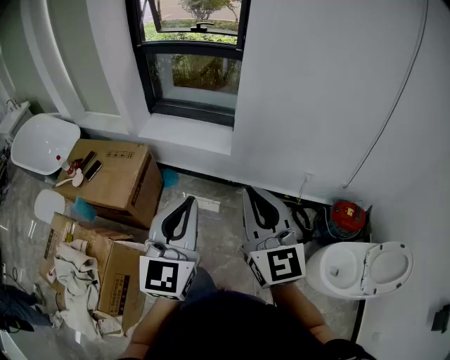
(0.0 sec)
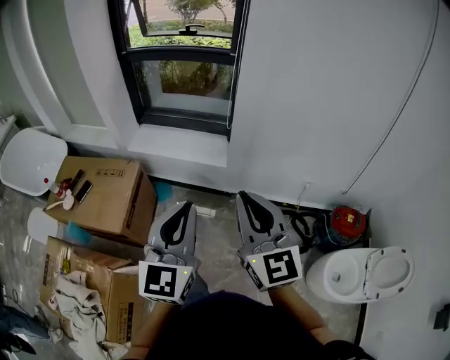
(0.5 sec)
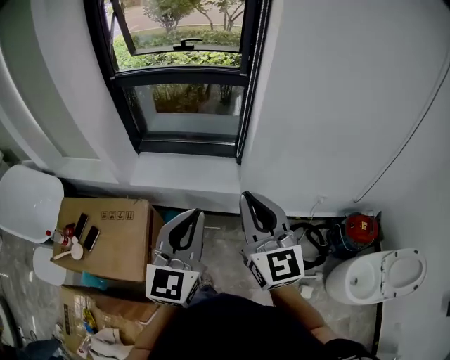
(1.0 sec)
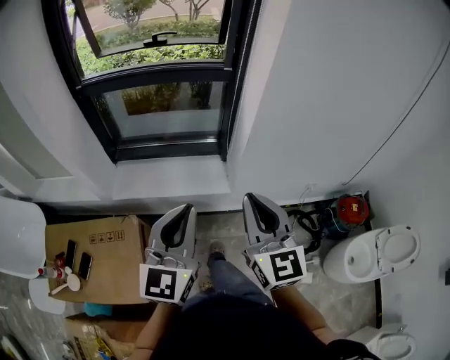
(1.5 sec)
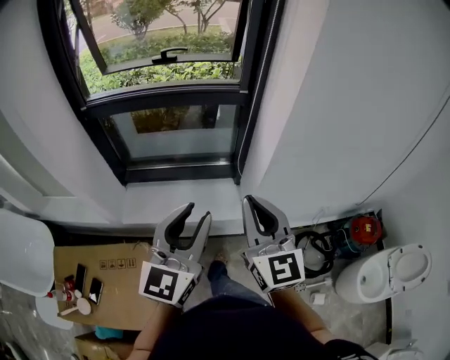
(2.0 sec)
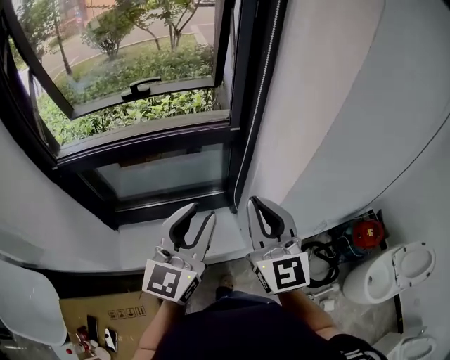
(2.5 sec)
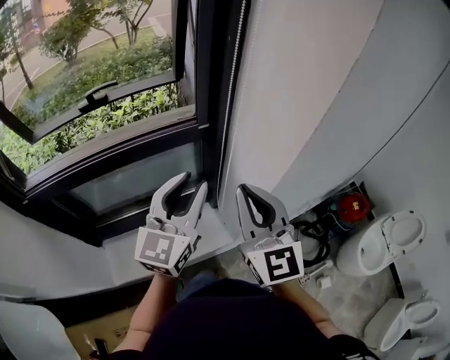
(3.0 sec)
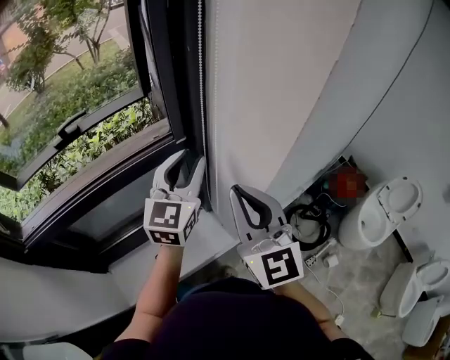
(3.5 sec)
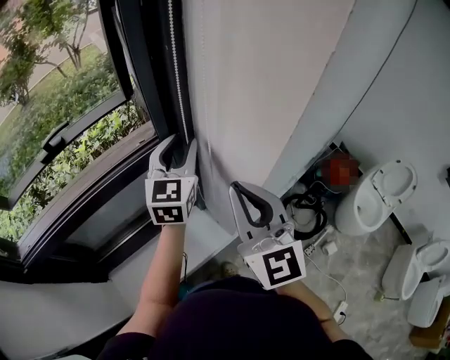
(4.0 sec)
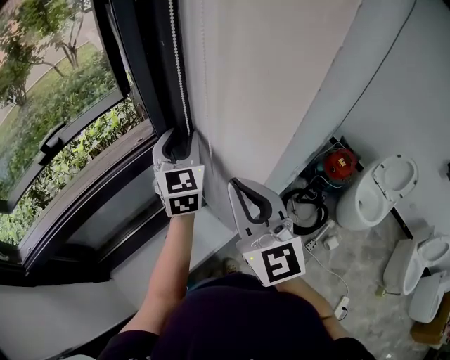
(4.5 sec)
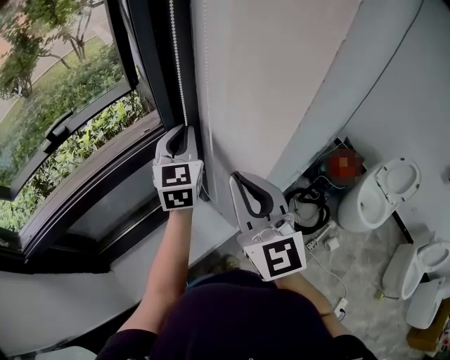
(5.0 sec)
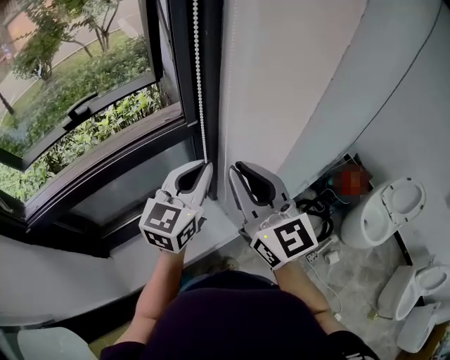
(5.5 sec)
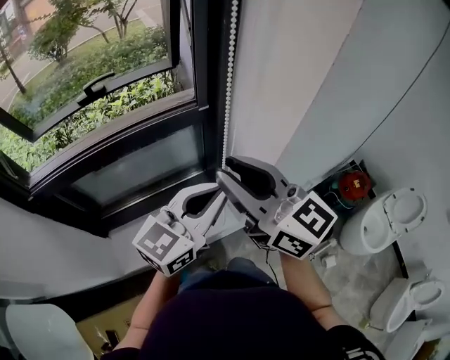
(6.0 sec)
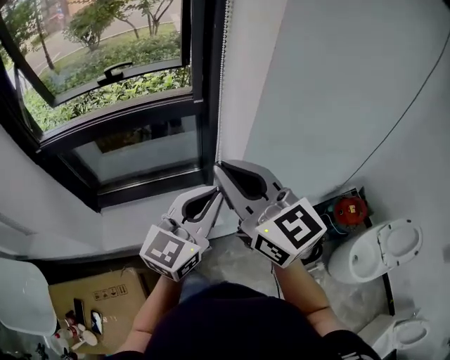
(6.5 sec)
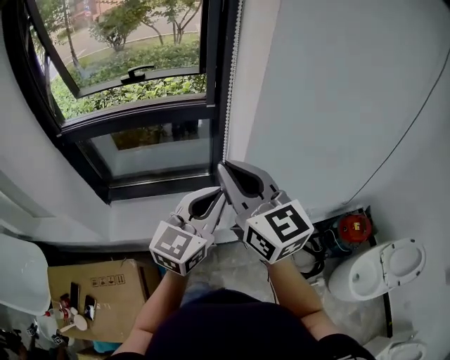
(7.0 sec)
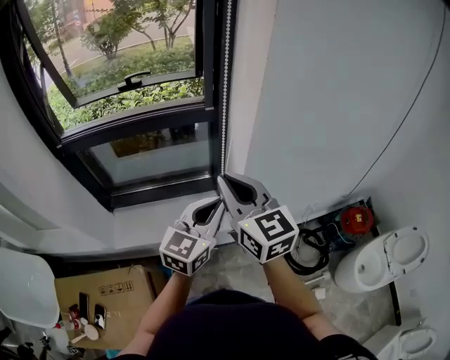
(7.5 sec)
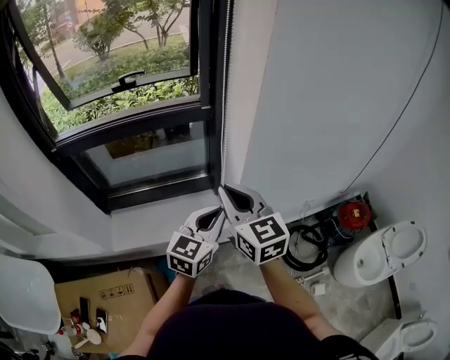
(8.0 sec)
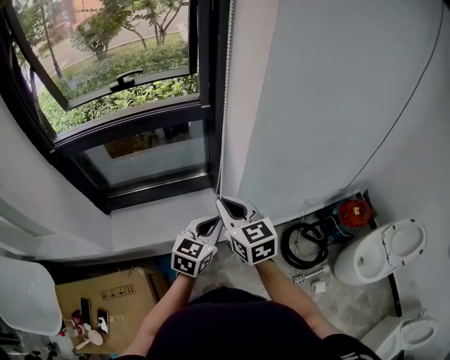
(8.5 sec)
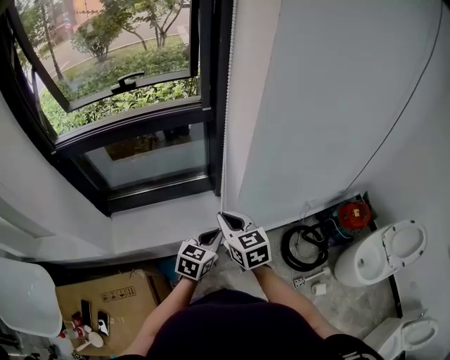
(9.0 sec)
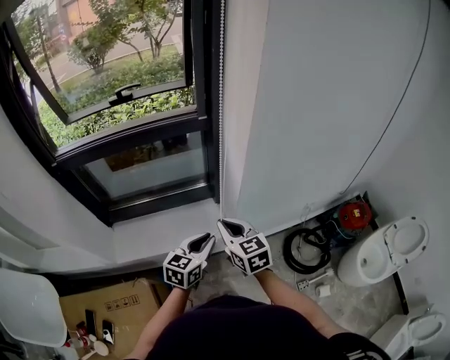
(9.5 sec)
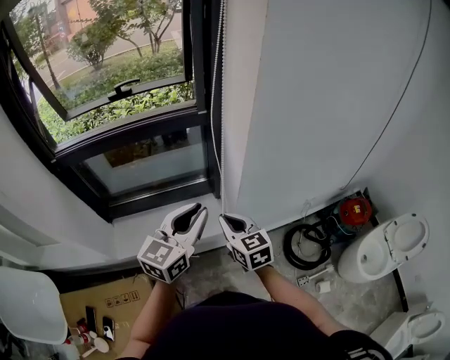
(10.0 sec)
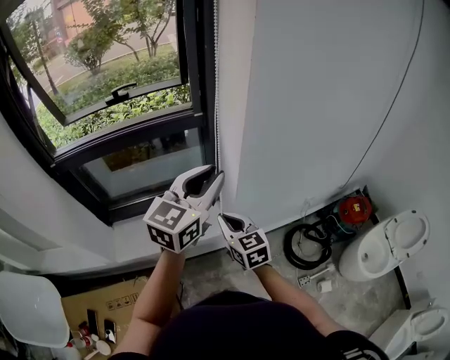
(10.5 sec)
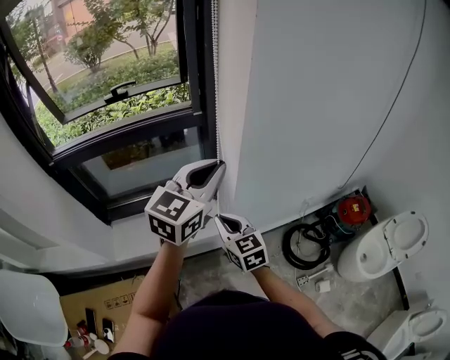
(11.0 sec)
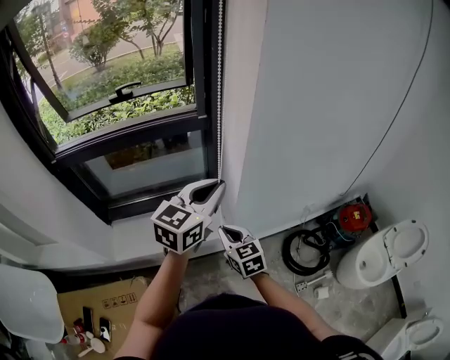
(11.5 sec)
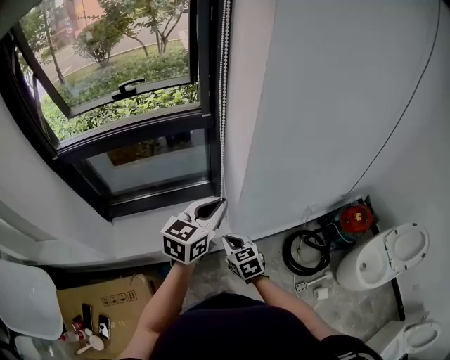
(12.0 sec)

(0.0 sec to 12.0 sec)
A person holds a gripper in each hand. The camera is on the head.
0.0 sec - 2.0 sec: Both grippers are carried forward and to the left, approximately 50 cm. The left gripper swivels approximately 30 degrees, and opens.
2.0 sec - 4.0 sec: The right gripper heads forward, covering about 25 cm, and swivels some 30 degrees; the left gripper travels forward by about 50 cm, and turns by approximately 20 degrees.
4.0 sec - 6.0 sec: The left gripper is displaced backward by some 25 cm, changes its angle by roughly 20 degrees, and closes, while the right gripper moves backward and to the left, some 10 cm, and rotates some 40 degrees.
6.0 sec - 8.0 sec: The right gripper is displaced downward, backward and to the right by about 15 cm. The left gripper goes approximately 15 cm backward, downward and to the right, and changes its angle by about 20 degrees.
8.0 sec - 10.0 sec: The right gripper shifts roughly 15 cm downward; the left gripper travels to the left by roughly 5 cm, and travels downward and back again, roughly 15 cm each way.
10.0 sec - 12.0 sec: The left gripper goes roughly 5 cm to the right, and moves some 10 cm upward and comes back. The right gripper travels downward by roughly 10 cm.

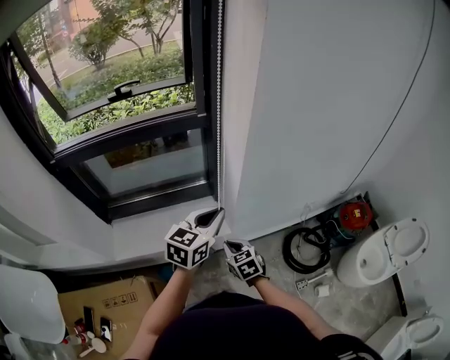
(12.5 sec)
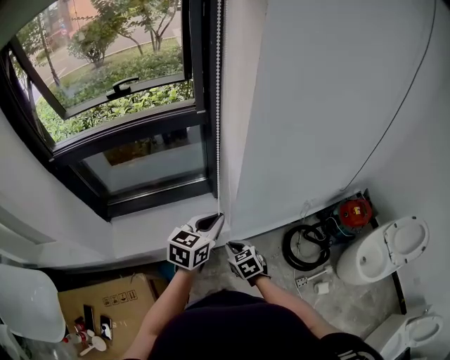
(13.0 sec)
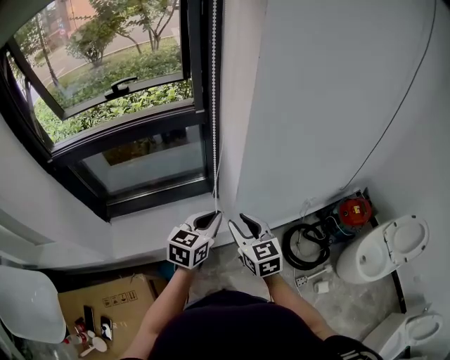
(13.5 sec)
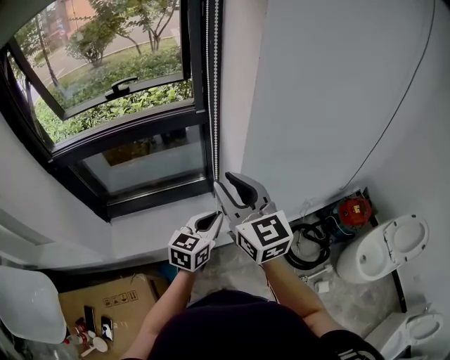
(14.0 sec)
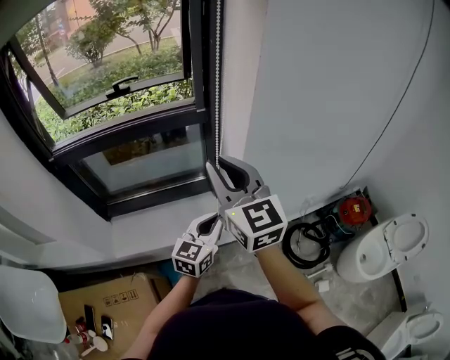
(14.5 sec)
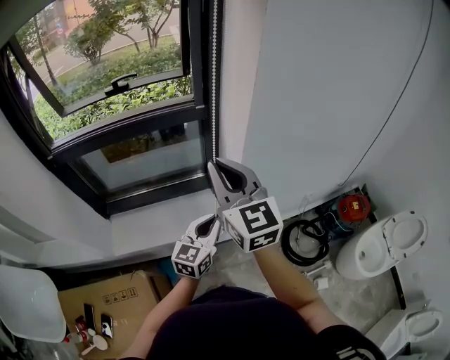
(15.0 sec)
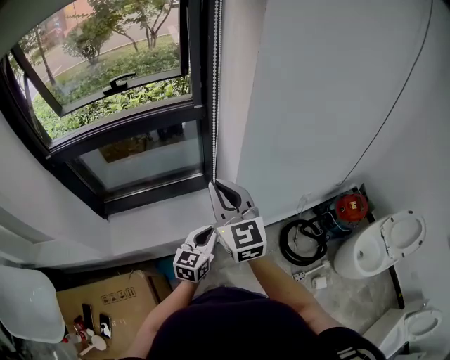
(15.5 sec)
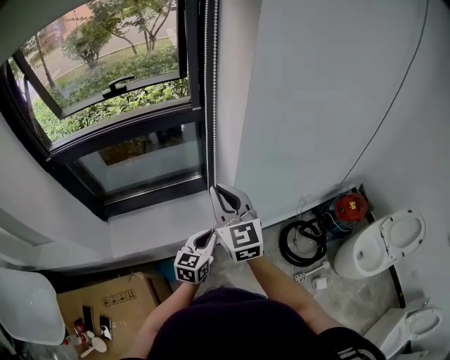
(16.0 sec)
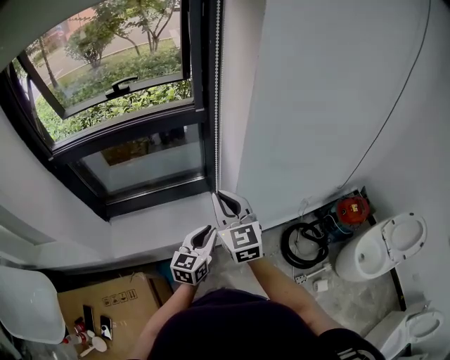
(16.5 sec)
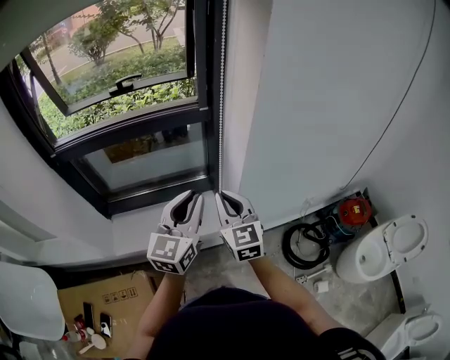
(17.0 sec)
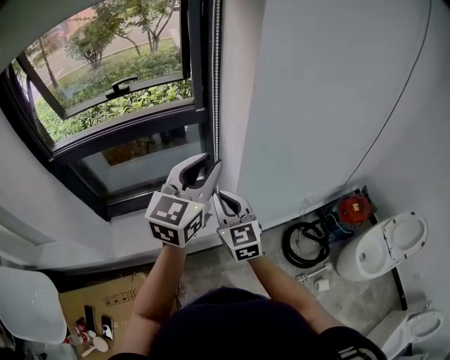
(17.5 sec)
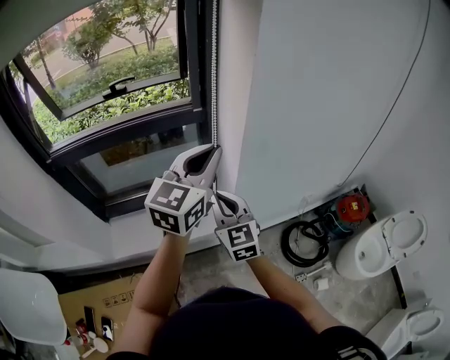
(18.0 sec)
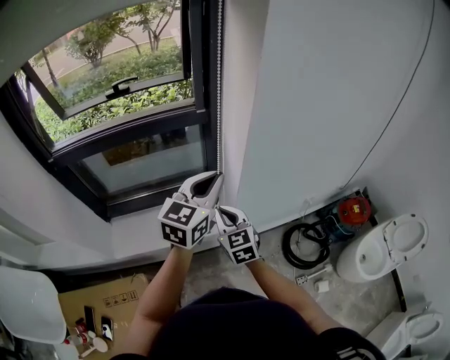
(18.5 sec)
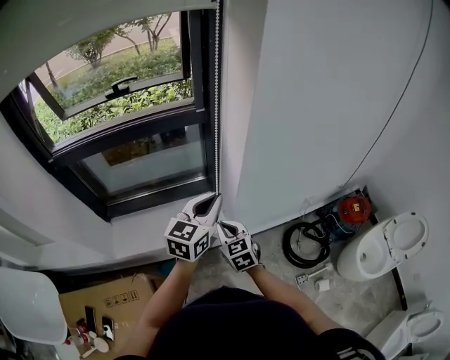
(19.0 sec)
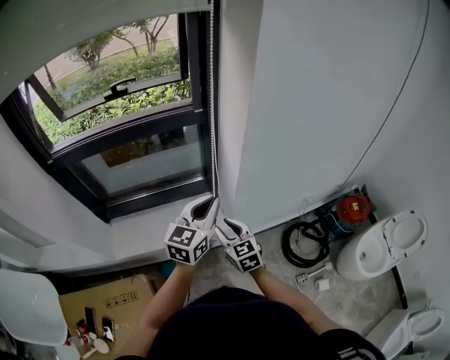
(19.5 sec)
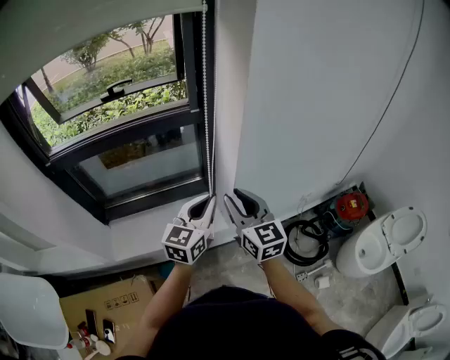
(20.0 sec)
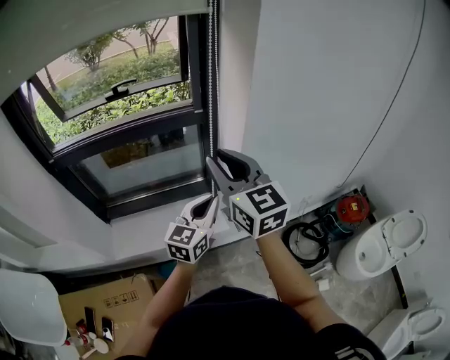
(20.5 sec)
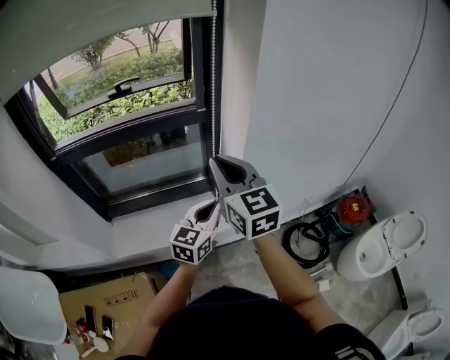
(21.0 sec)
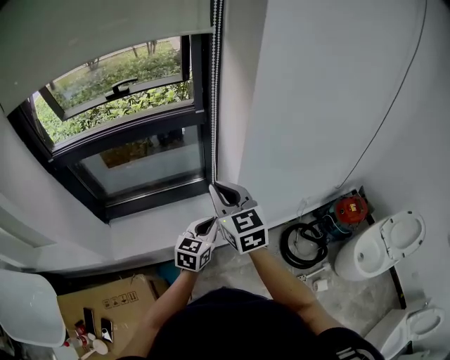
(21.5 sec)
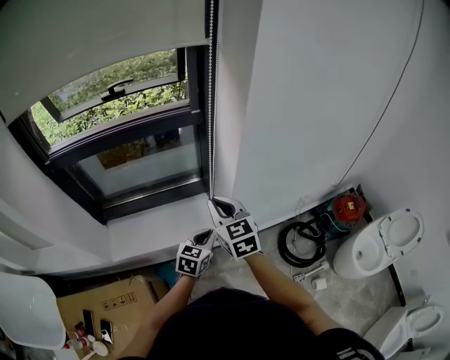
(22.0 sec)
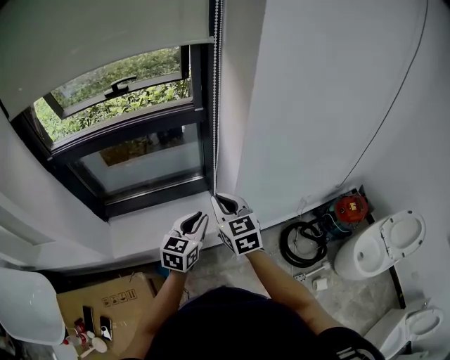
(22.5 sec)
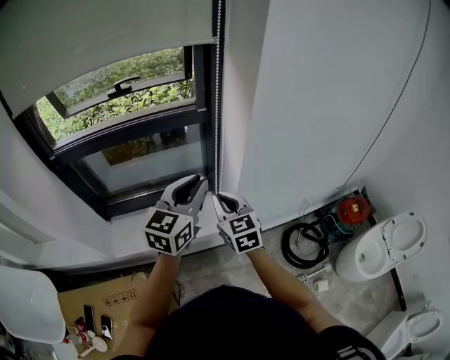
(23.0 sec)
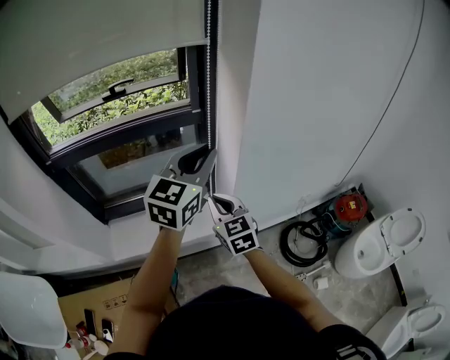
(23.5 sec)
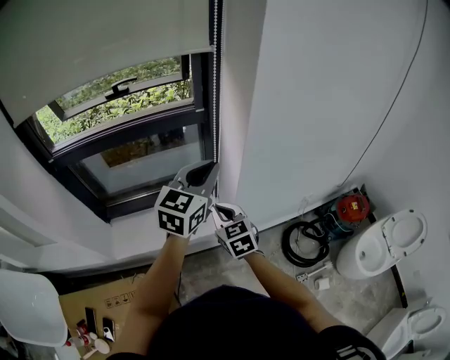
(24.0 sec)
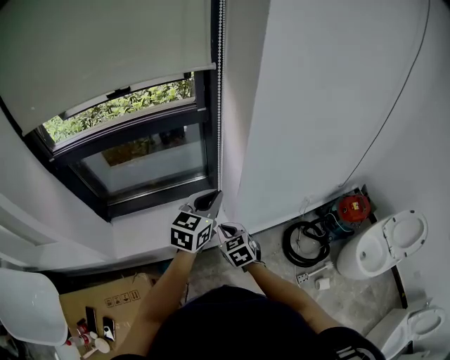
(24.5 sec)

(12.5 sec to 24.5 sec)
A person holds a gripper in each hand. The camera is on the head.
12.5 sec - 14.5 sec: The right gripper moves upward, about 35 cm, and tilts its fingers some 40 degrees upward.
14.5 sec - 16.5 sec: The right gripper moves downward, roughly 15 cm; the left gripper travels downward by some 5 cm.
16.5 sec - 18.5 sec: The left gripper shifts some 20 cm upward and forward. Meanwhile the right gripper moves downward, some 10 cm.
18.5 sec - 20.5 sec: The left gripper travels downward by about 10 cm. Meanwhile the right gripper is displaced upward by about 25 cm, and rotates roughly 20 degrees.
20.5 sec - 22.5 sec: The left gripper travels downward by roughly 10 cm, while the right gripper travels downward by roughly 20 cm.
22.5 sec - 24.5 sec: The right gripper shifts roughly 15 cm downward, and turns by roughly 20 degrees. The left gripper moves roughly 25 cm upward and comes back.

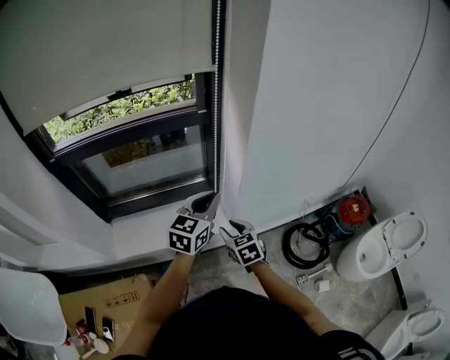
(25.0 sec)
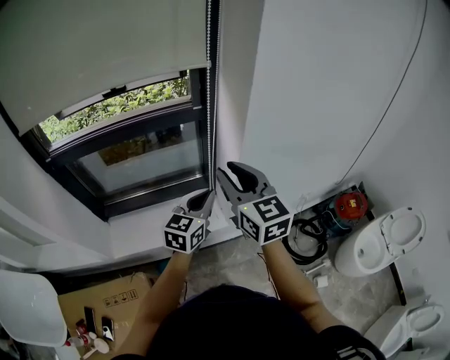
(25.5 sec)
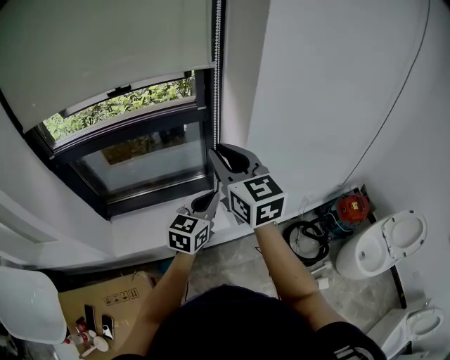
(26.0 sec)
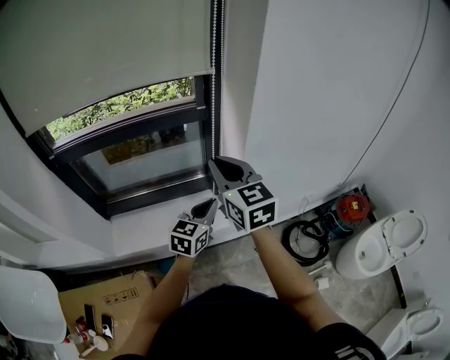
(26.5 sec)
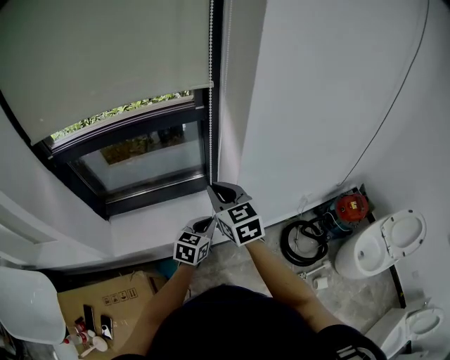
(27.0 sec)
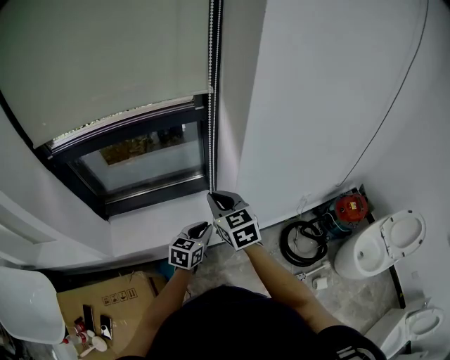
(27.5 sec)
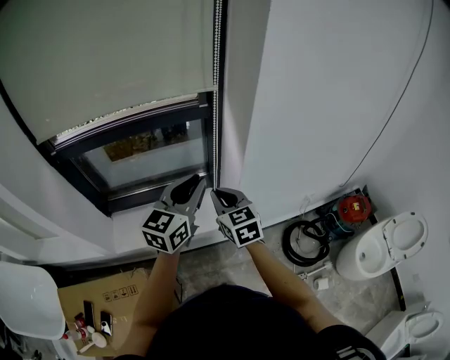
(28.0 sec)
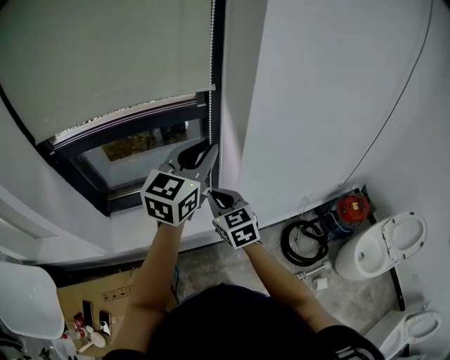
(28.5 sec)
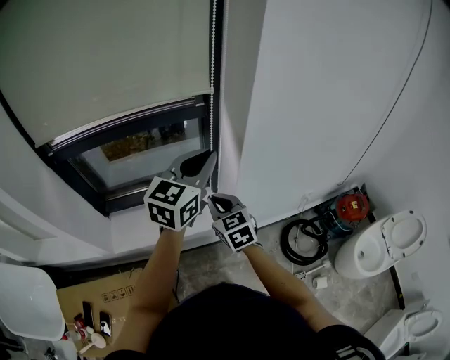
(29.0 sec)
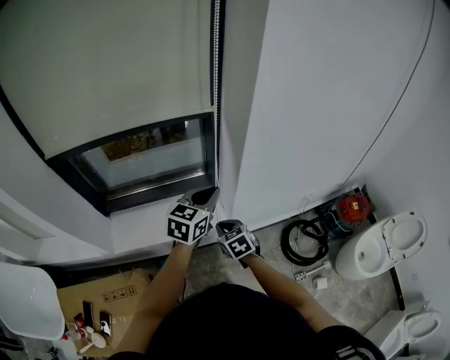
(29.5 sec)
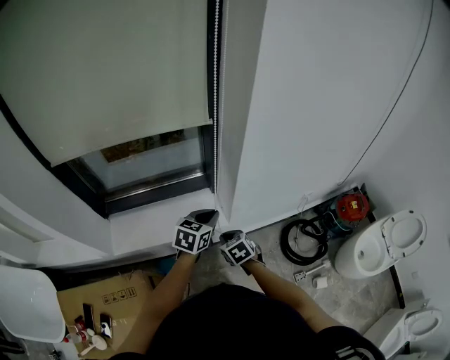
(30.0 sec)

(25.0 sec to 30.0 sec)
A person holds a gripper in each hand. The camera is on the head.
25.0 sec - 27.5 sec: The left gripper is displaced downward by roughly 15 cm; the right gripper shifts roughly 15 cm upward, and closes up.
27.5 sec - 30.0 sec: The right gripper travels downward by approximately 20 cm, and points its fingers roughly 30 degrees further downward, while the left gripper moves approximately 30 cm upward and comes back.
